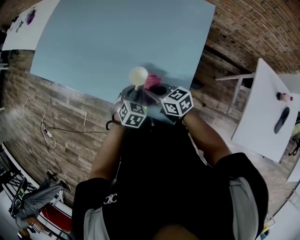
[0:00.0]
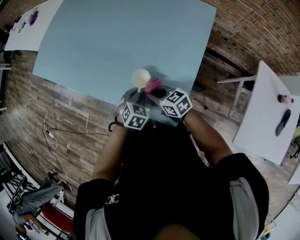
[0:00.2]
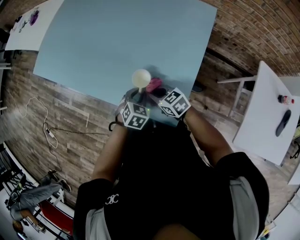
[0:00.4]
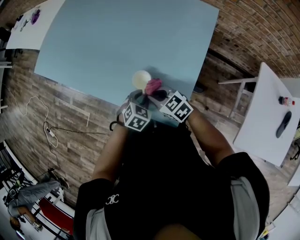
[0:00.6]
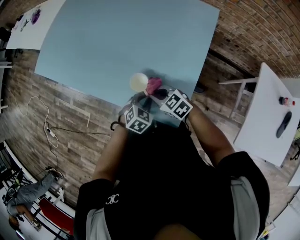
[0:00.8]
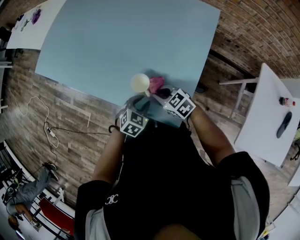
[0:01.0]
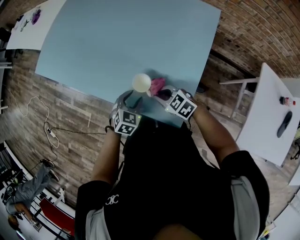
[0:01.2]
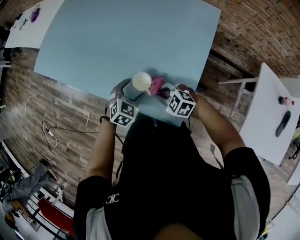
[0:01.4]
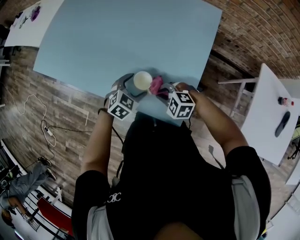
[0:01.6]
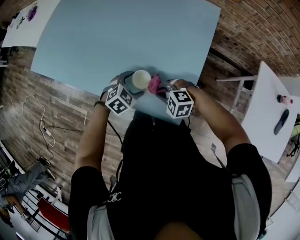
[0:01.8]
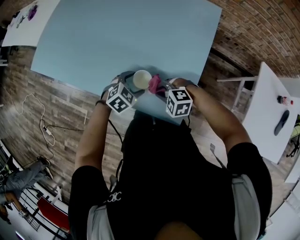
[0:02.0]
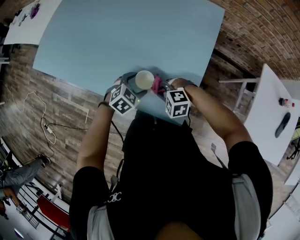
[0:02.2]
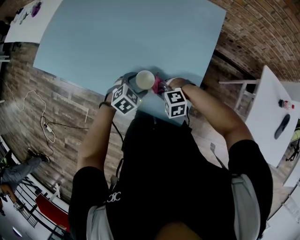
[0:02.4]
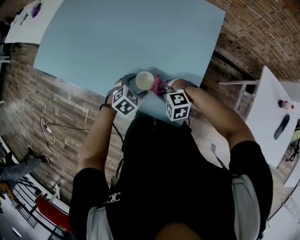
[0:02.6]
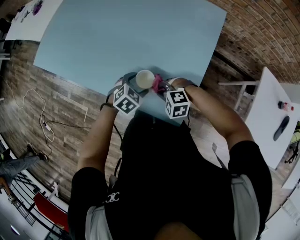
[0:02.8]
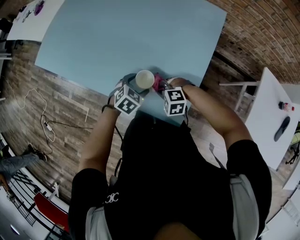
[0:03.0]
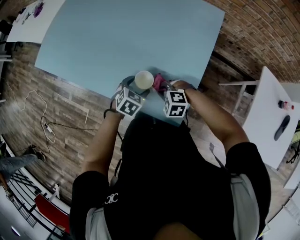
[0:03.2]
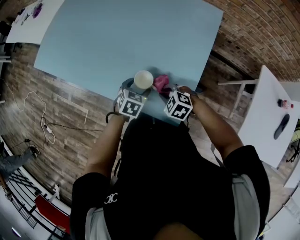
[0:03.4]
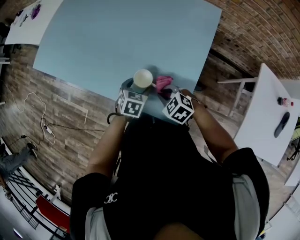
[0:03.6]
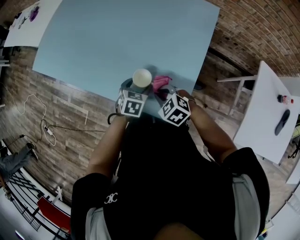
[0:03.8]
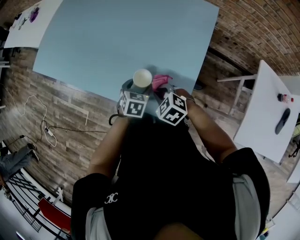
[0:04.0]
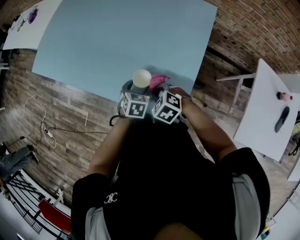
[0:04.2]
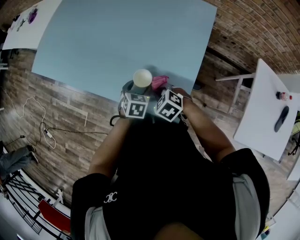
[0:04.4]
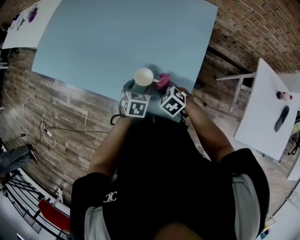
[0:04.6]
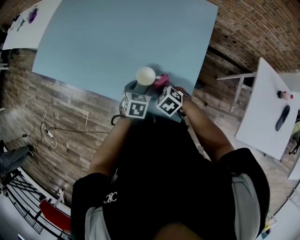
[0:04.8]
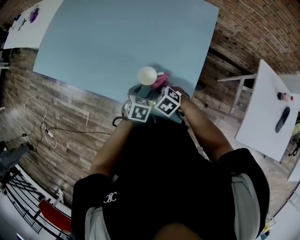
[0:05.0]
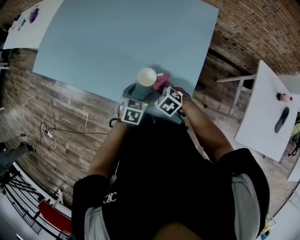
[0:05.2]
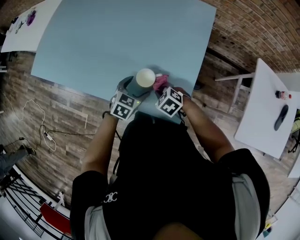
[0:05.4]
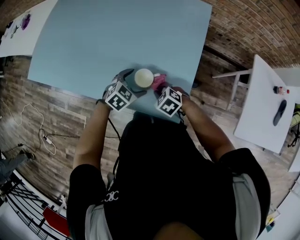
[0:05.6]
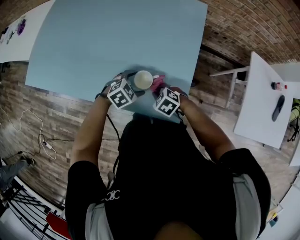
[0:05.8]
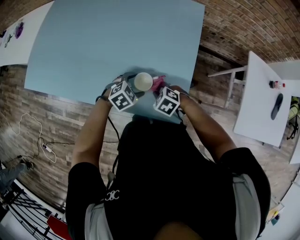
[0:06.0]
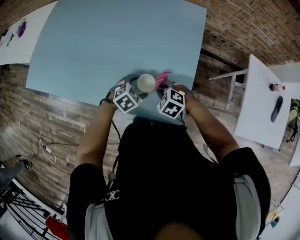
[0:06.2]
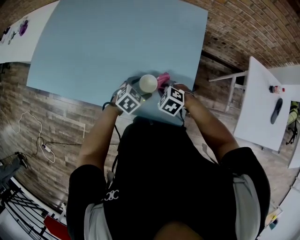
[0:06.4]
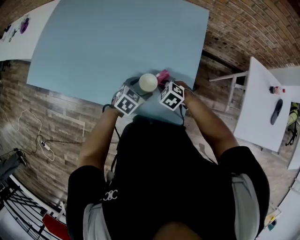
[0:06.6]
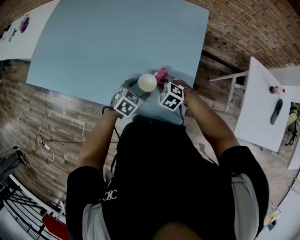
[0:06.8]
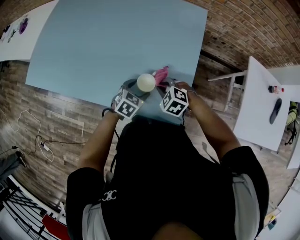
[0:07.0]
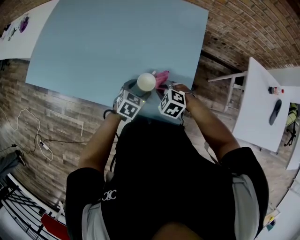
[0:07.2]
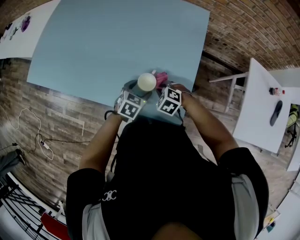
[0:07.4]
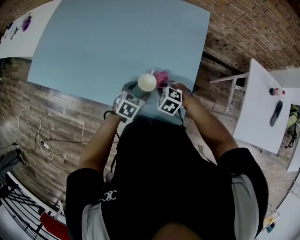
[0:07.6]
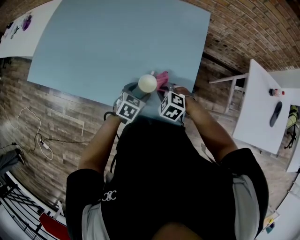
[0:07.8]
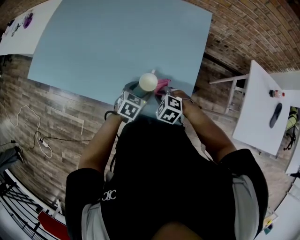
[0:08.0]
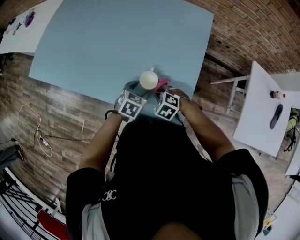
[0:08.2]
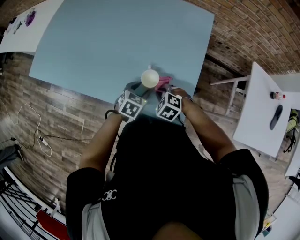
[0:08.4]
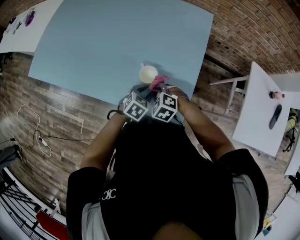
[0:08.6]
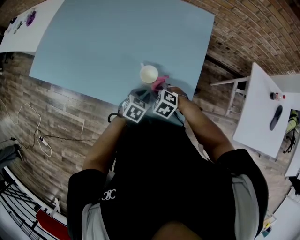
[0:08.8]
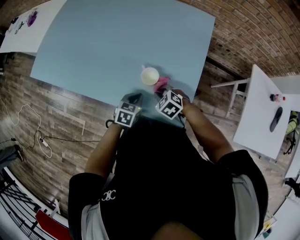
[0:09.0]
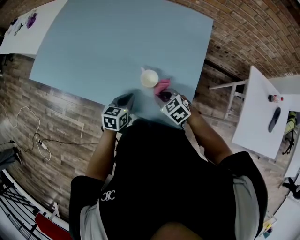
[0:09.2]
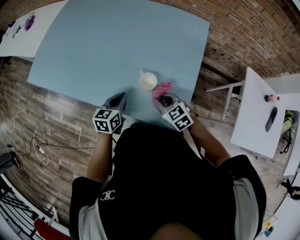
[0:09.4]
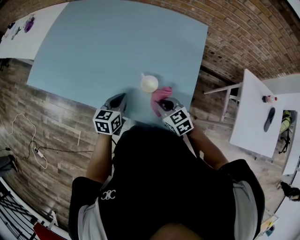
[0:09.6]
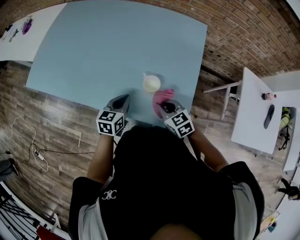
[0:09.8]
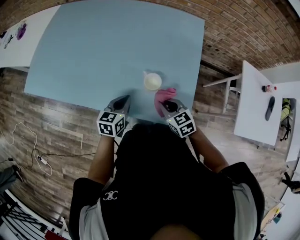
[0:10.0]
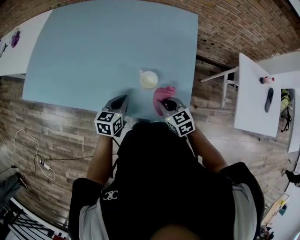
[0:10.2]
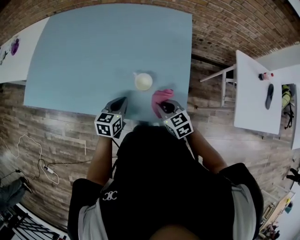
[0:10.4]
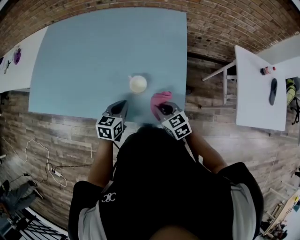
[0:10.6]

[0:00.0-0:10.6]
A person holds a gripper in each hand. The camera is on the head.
0:00.0 to 0:01.6: The left gripper rotates approximately 20 degrees, and opens, while the right gripper twists some 50 degrees counterclockwise, seen from behind.
0:01.6 to 0:03.0: The grippers make only small movements.
0:03.0 to 0:04.6: The left gripper rotates roughly 30 degrees. The right gripper rotates around the line of its fingers by roughly 50 degrees, clockwise from behind.
0:04.6 to 0:06.0: The left gripper rotates around the line of its fingers by some 40 degrees, clockwise from behind.
0:06.0 to 0:07.6: The left gripper rotates roughly 30 degrees.
0:07.6 to 0:09.0: The left gripper closes up.
0:09.0 to 0:10.6: The grippers both shift upward by approximately 5 cm. The right gripper turns by some 40 degrees.

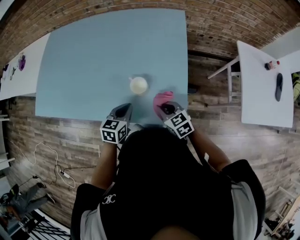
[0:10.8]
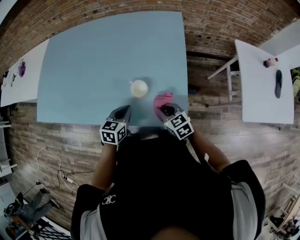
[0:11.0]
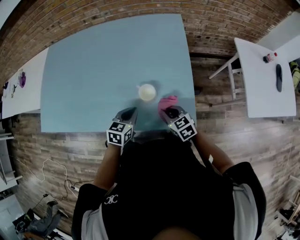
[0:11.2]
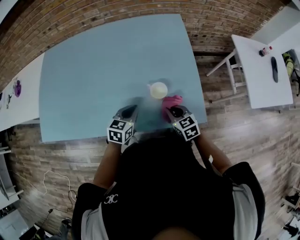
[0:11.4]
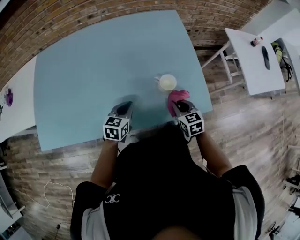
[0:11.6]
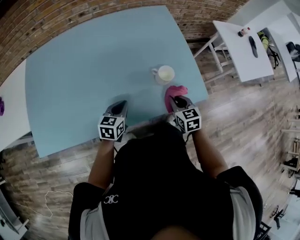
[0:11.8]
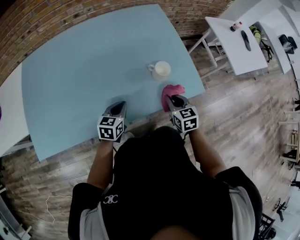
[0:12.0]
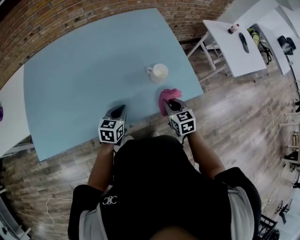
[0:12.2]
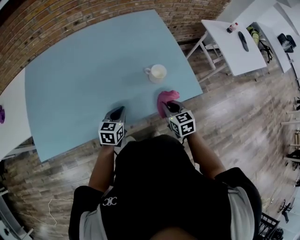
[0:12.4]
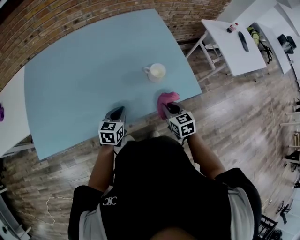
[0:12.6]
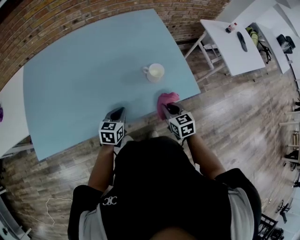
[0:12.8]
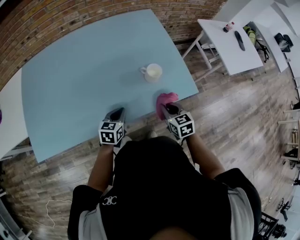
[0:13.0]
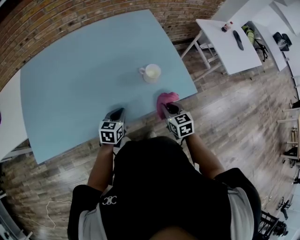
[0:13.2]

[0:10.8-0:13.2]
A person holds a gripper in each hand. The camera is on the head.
0:10.8 to 0:12.0: The right gripper changes place by about 10 cm, and rotates roughly 40 degrees; the left gripper moves about 20 cm, and swivels approximately 20 degrees.
0:12.0 to 0:13.2: The grippers make only small movements.

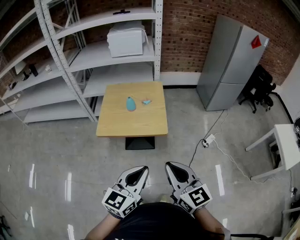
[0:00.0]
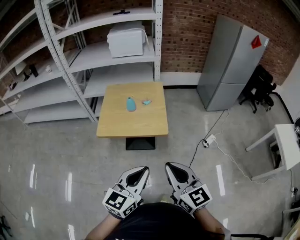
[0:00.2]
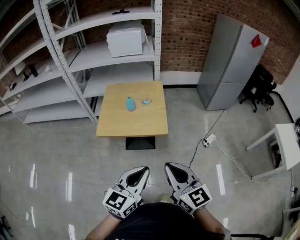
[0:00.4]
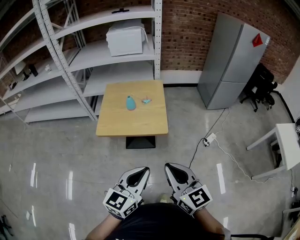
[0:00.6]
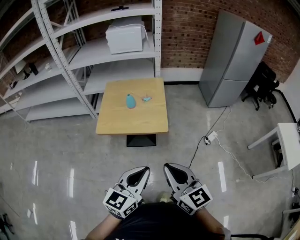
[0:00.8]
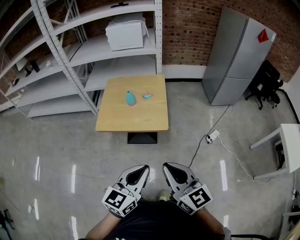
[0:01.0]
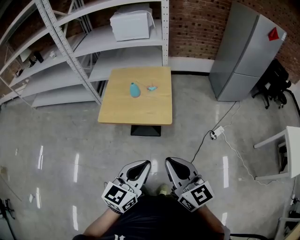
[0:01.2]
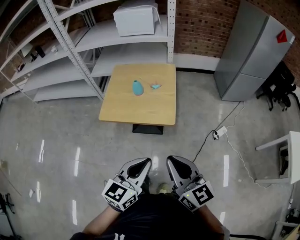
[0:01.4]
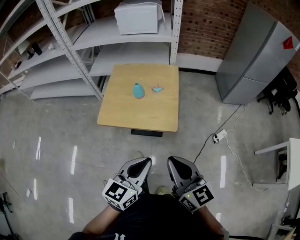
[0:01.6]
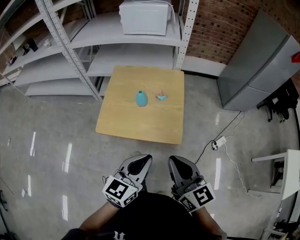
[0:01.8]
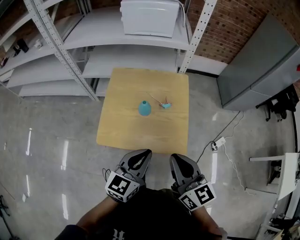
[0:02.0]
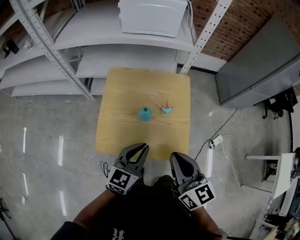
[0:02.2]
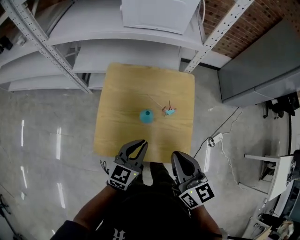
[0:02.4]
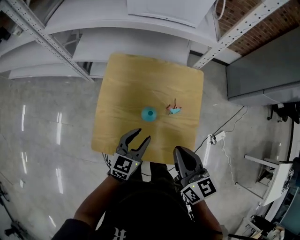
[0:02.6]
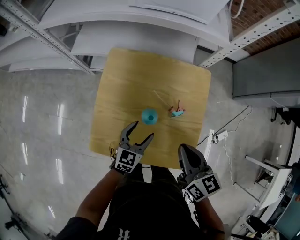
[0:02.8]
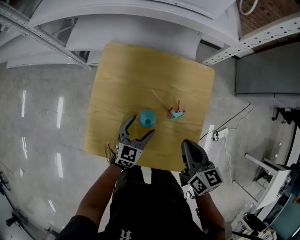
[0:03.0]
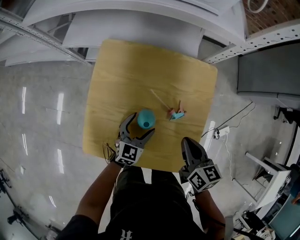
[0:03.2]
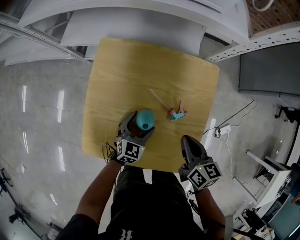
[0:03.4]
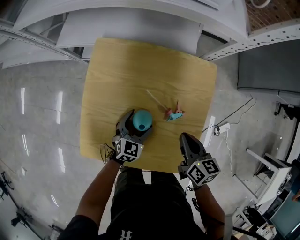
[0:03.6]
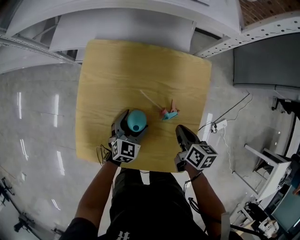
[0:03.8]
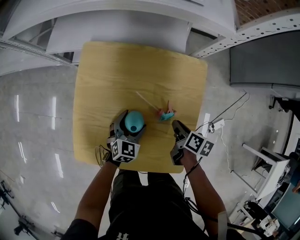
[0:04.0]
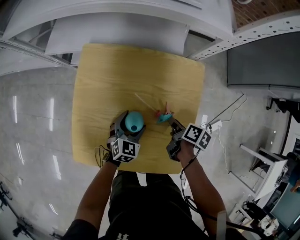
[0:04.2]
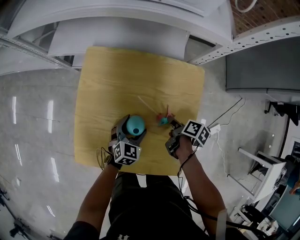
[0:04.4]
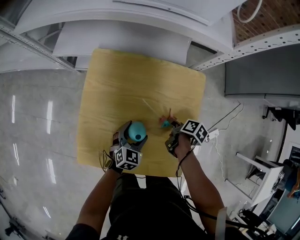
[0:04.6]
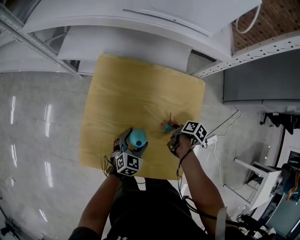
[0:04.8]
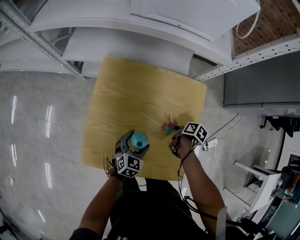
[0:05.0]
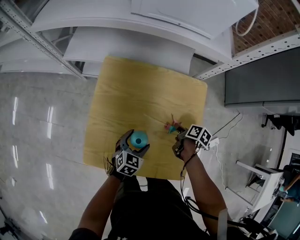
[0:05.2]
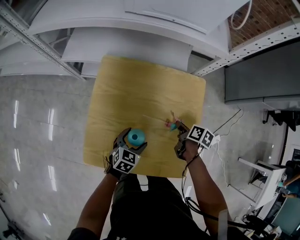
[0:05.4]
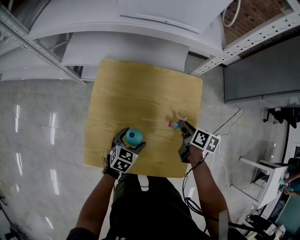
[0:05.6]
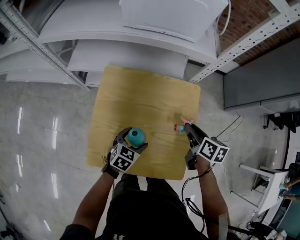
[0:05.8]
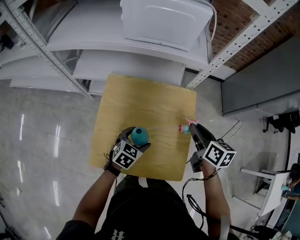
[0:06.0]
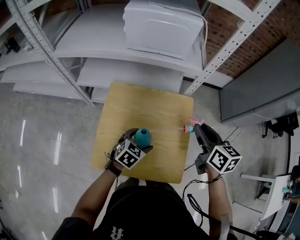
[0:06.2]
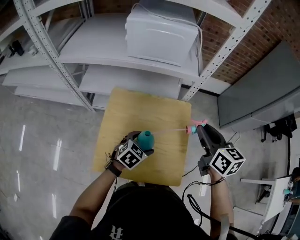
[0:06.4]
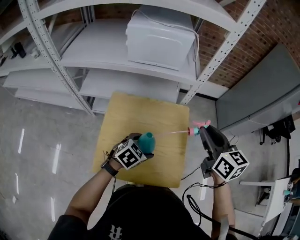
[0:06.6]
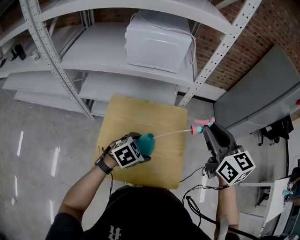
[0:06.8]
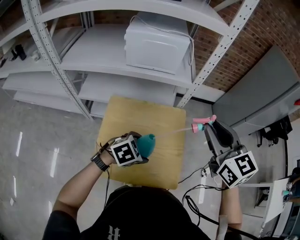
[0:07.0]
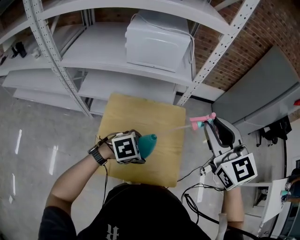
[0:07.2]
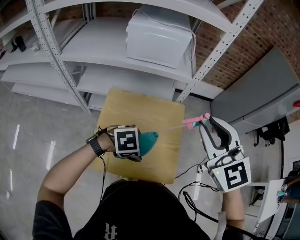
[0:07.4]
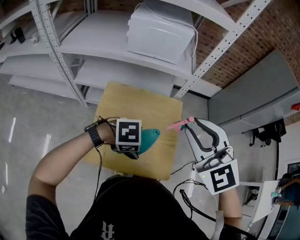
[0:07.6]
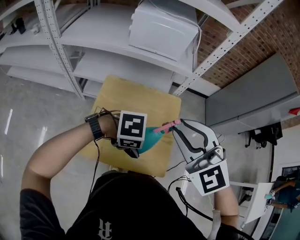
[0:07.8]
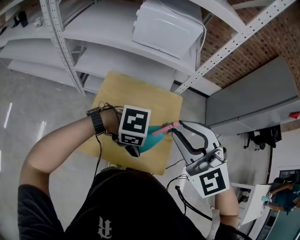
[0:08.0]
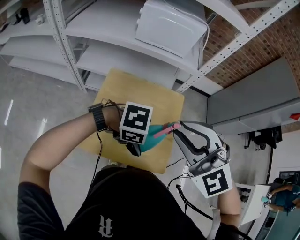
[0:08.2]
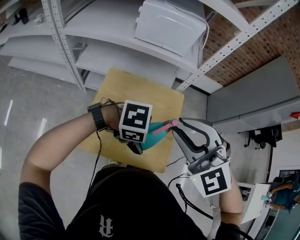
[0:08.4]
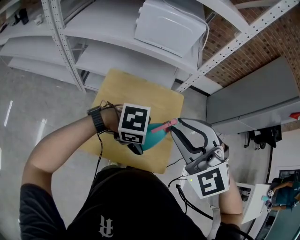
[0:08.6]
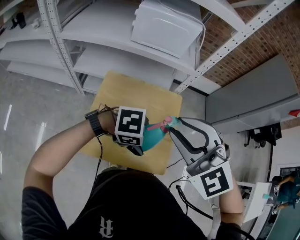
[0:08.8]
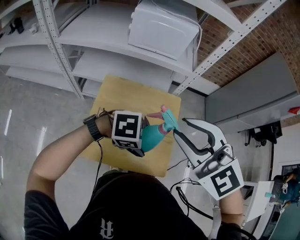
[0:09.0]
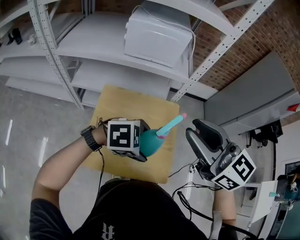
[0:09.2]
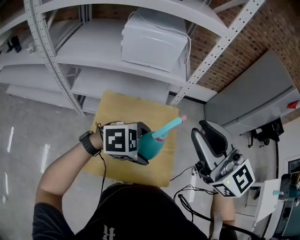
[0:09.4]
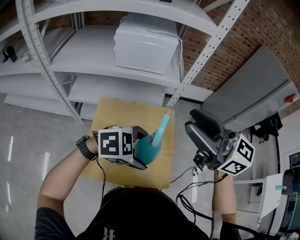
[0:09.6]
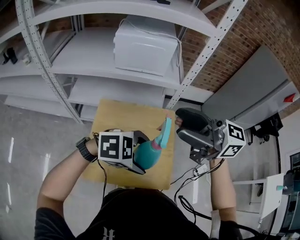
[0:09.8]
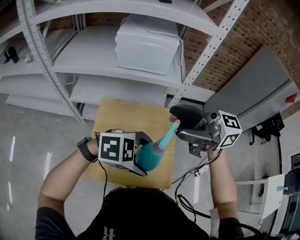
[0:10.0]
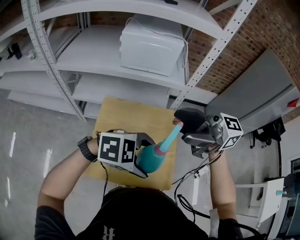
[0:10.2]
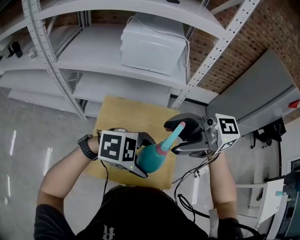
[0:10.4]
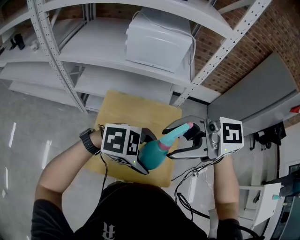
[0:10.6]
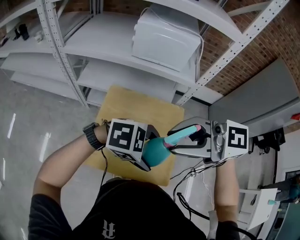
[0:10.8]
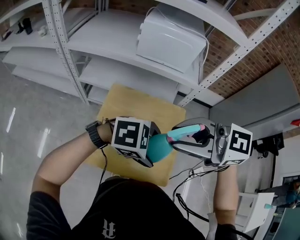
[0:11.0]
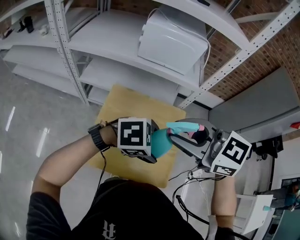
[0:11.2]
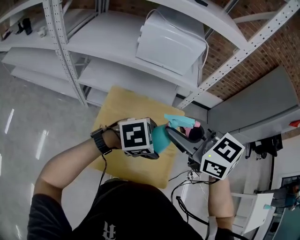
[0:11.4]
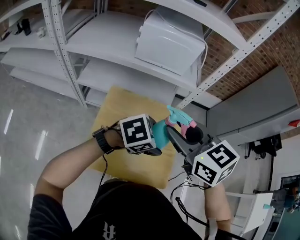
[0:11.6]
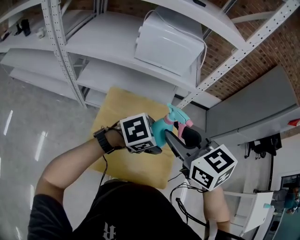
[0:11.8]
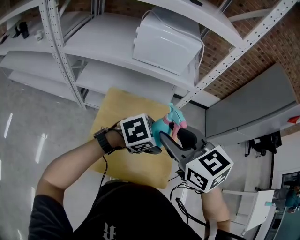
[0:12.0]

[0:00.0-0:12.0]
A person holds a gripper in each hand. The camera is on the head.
0:00.0 to 0:01.6: The left gripper moves forward and downward, some 15 cm. Meanwhile the right gripper travels forward by about 15 cm.
0:01.6 to 0:03.0: The two grippers travel together, forward, approximately 50 cm. The grippers both shift downward by approximately 25 cm. The left gripper opens up. Meanwhile the right gripper rotates about 30 degrees.
0:03.0 to 0:04.4: The left gripper goes roughly 5 cm downward. The right gripper shifts about 20 cm downward and forward, rolls clockwise, seen from behind, by some 50 degrees, and opens its fingers.
0:04.4 to 0:06.0: The left gripper is displaced upward by roughly 15 cm. Meanwhile the right gripper heads upward, covering about 30 cm, and twists roughly 40 degrees counterclockwise, seen from behind.
0:06.0 to 0:07.6: The left gripper moves upward, roughly 15 cm, and turns by about 60 degrees. Meanwhile the right gripper goes approximately 30 cm upward, and rolls counterclockwise, seen from behind, by about 70 degrees.
0:09.0 to 0:10.4: The left gripper goes approximately 5 cm upward. Meanwhile the right gripper rotates roughly 70 degrees, and opens.
0:10.4 to 0:12.0: The left gripper shifts by about 10 cm, and rotates approximately 30 degrees, while the right gripper moves downward, some 5 cm, angles its fingers downward, by approximately 30 degrees, and closes up.
